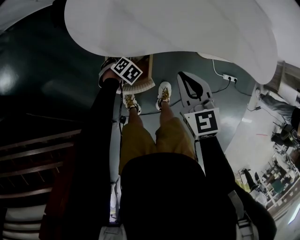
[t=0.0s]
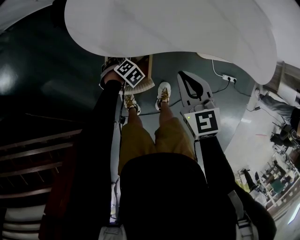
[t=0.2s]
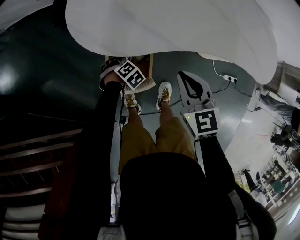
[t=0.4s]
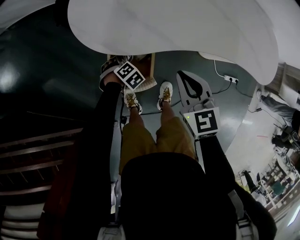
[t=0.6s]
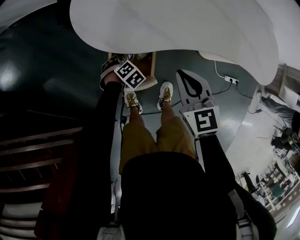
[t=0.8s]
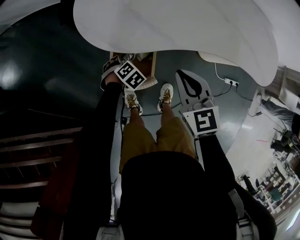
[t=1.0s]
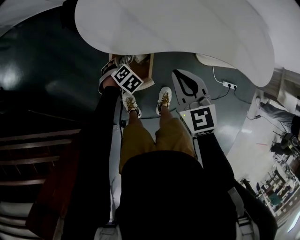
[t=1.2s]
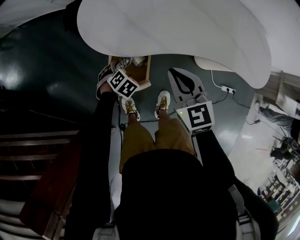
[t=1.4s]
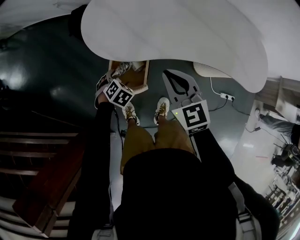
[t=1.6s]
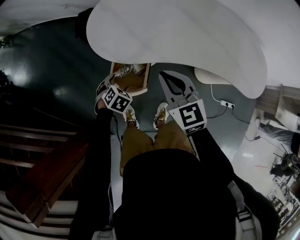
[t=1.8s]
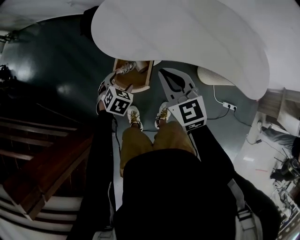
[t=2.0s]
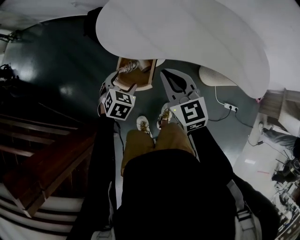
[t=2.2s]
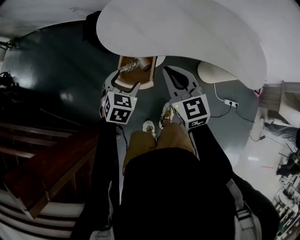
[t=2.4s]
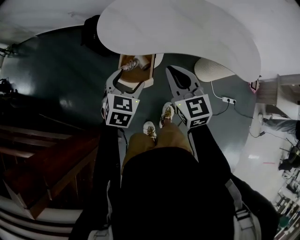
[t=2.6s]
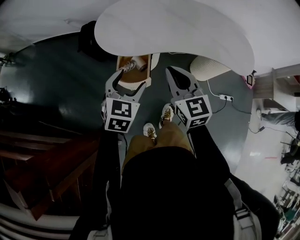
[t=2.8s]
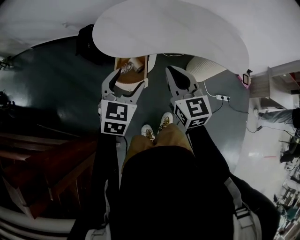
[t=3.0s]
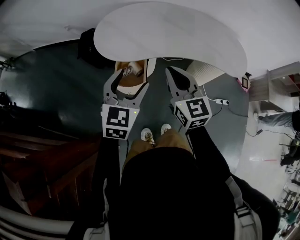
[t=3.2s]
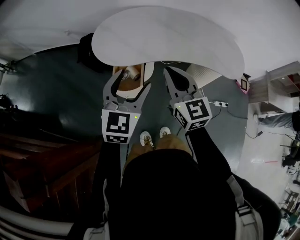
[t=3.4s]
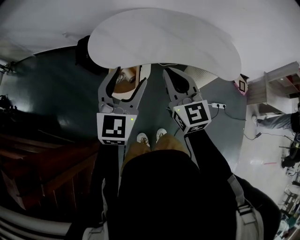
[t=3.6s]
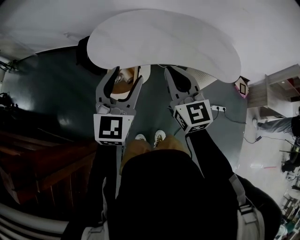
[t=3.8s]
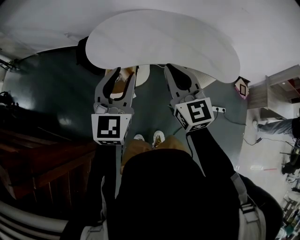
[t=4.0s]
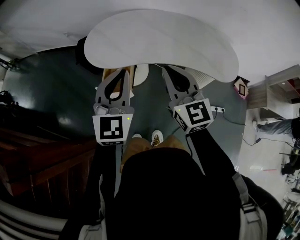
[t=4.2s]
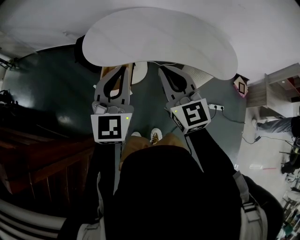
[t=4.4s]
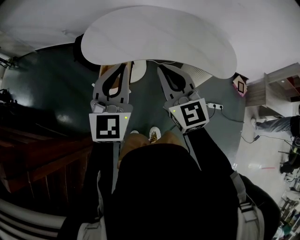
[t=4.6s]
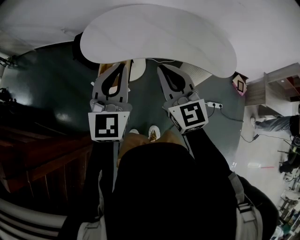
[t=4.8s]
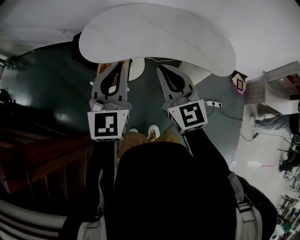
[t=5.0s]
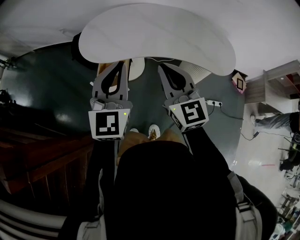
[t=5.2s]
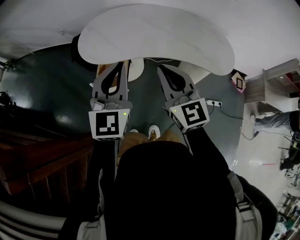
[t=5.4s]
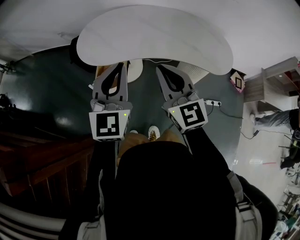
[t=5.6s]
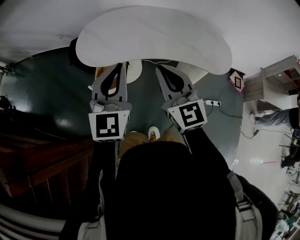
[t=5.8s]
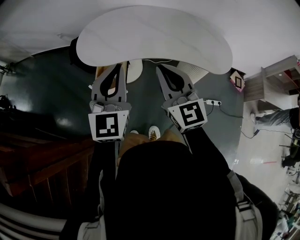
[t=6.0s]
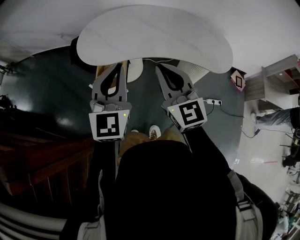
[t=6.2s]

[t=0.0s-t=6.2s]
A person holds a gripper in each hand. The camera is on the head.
t=0.0s to t=1.6s: The left gripper shifts some 10 cm upward; the right gripper goes approximately 5 cm upward.
t=1.6s to t=3.2s: The right gripper shifts approximately 15 cm upward and backward, while the left gripper is displaced upward by approximately 35 cm, and tilts its fingers about 50 degrees upward.
t=3.2s to t=4.6s: The right gripper travels to the right by approximately 10 cm. Meanwhile the left gripper shifts approximately 15 cm to the right and upward, turns by roughly 20 degrees, and closes its fingers.
t=4.6s to t=6.2s: The grippers make only small movements.

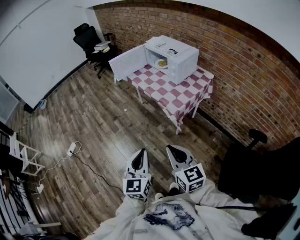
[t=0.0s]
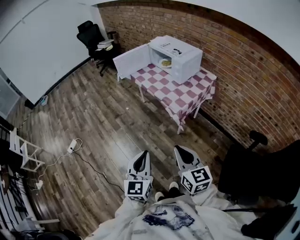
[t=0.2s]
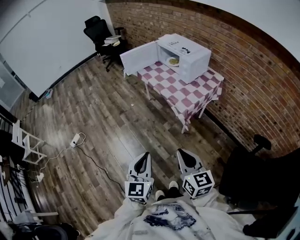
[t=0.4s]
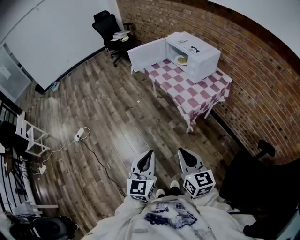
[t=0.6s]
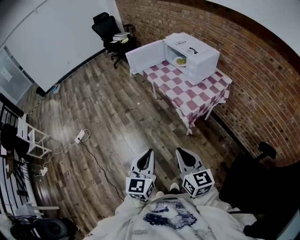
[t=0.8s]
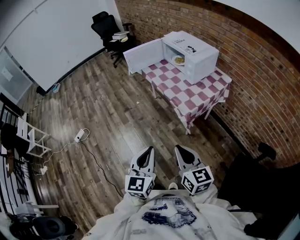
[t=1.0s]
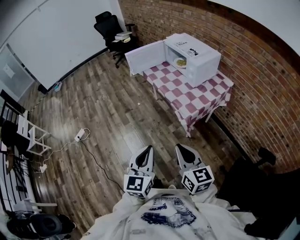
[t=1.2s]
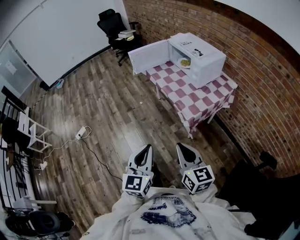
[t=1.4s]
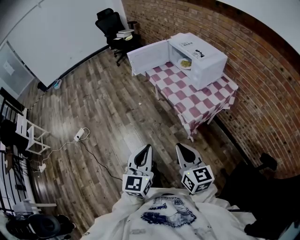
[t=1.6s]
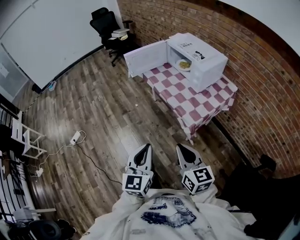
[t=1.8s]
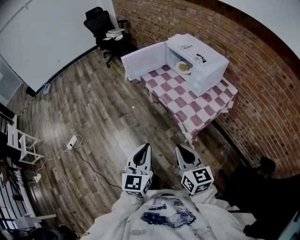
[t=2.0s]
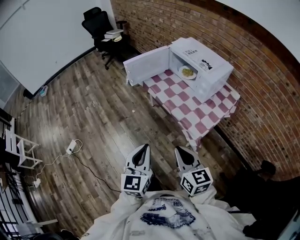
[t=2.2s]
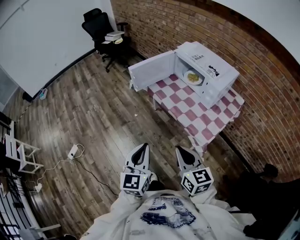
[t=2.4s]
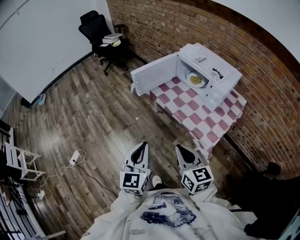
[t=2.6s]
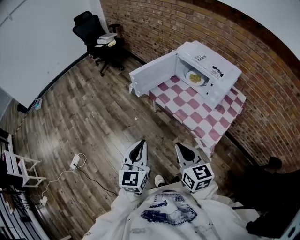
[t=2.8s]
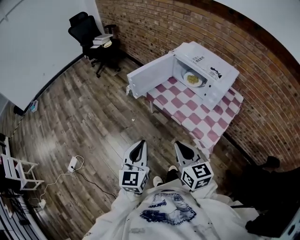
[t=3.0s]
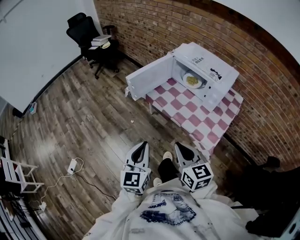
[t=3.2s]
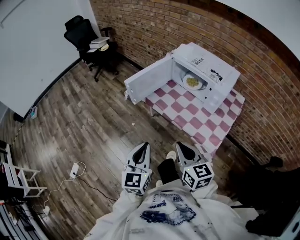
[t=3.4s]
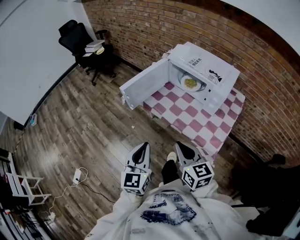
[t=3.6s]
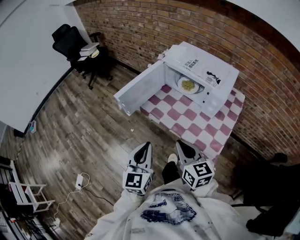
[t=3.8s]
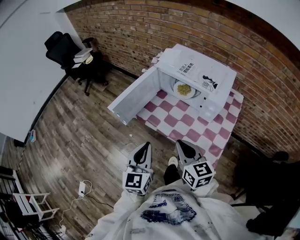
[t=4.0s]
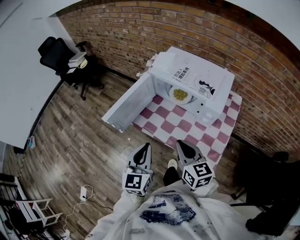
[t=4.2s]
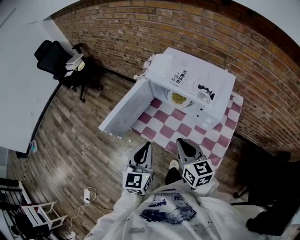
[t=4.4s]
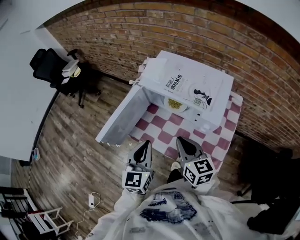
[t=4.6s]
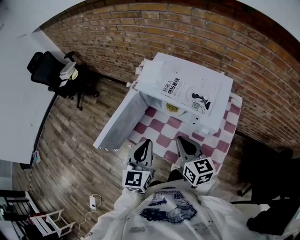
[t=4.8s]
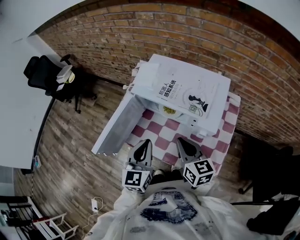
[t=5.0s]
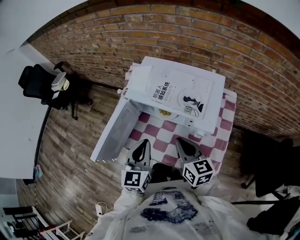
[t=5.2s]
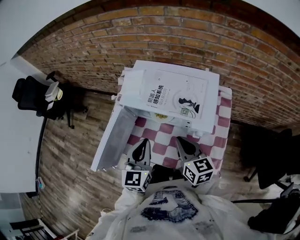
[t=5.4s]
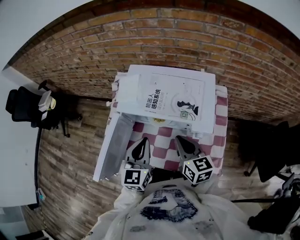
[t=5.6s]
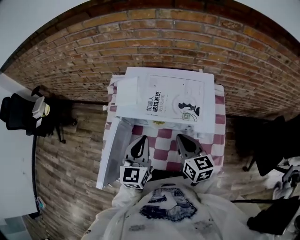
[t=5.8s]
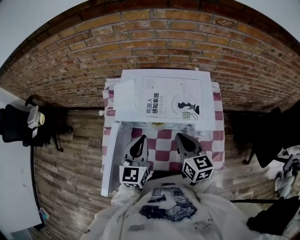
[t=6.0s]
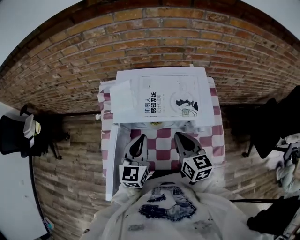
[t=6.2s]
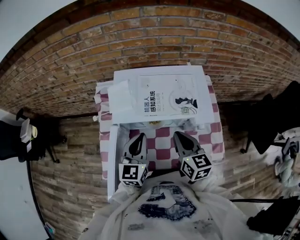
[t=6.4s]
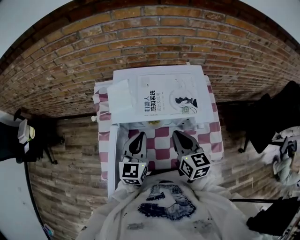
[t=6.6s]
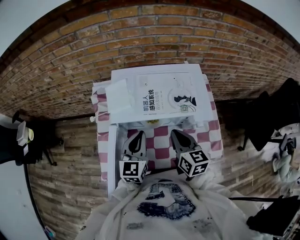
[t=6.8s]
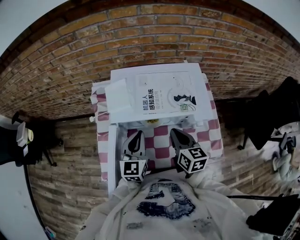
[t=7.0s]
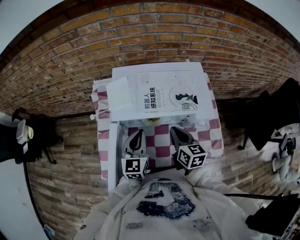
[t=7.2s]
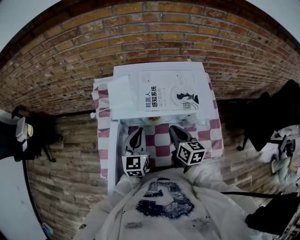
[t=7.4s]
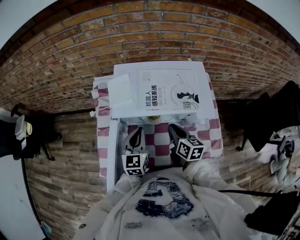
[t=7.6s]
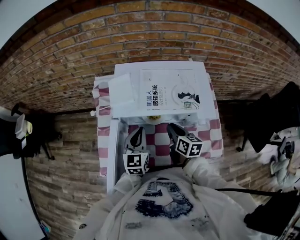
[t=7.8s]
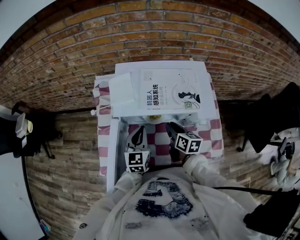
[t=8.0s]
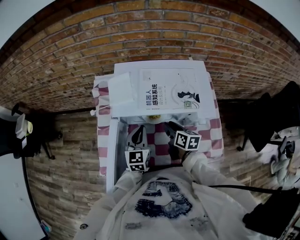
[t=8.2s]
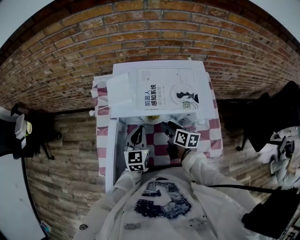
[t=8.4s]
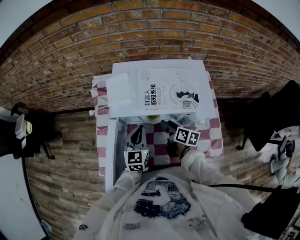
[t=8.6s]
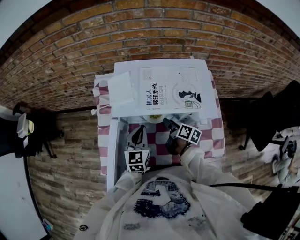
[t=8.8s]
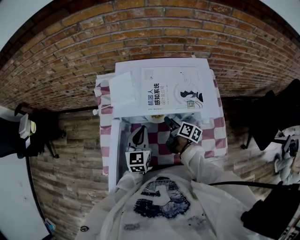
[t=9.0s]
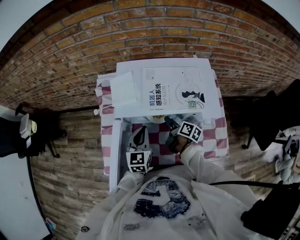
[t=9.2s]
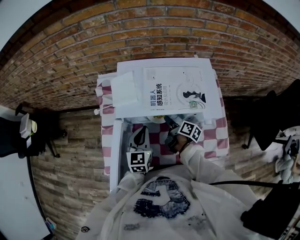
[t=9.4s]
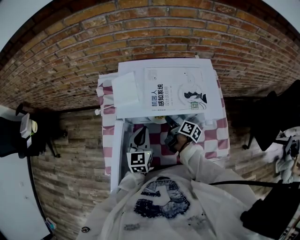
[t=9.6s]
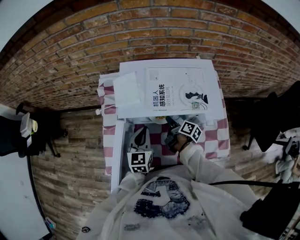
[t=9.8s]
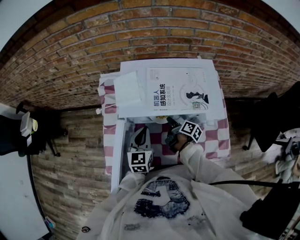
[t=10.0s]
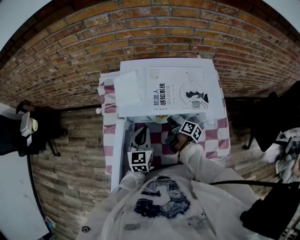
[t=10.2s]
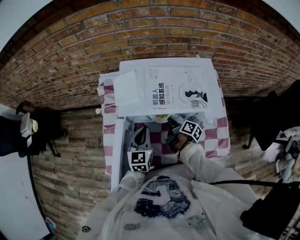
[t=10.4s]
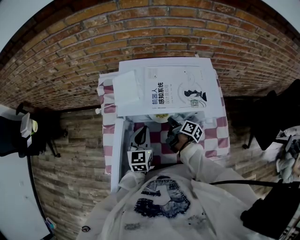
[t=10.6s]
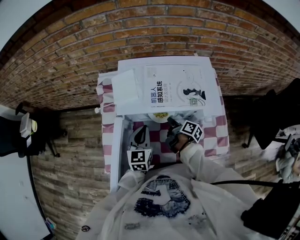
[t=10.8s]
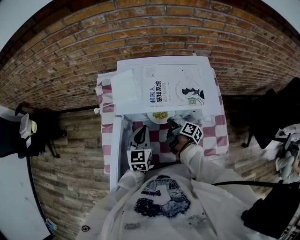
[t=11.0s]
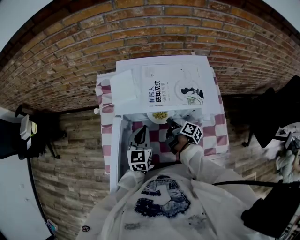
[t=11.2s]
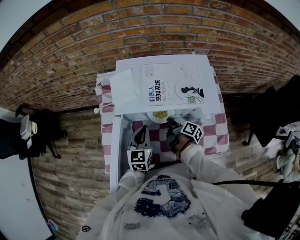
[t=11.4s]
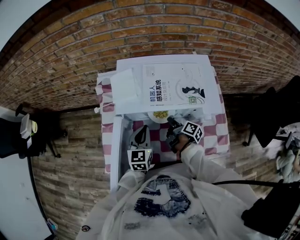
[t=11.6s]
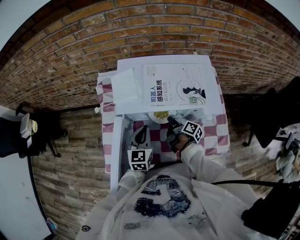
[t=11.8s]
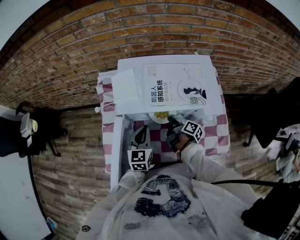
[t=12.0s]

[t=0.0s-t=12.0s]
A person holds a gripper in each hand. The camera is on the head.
t=0.0s to t=1.6s: Both grippers move forward, some 10 cm.
t=1.6s to t=3.0s: The two grippers go approximately 35 cm forward and to the left.
t=3.0s to t=4.4s: The right gripper travels forward by roughly 25 cm. Meanwhile the left gripper moves forward and to the right, roughly 30 cm.
t=4.4s to t=6.0s: The right gripper changes place by about 15 cm, and swivels roughly 30 degrees, while the left gripper ends up some 25 cm from where it was, and swivels about 30 degrees.
t=6.0s to t=7.6s: Both grippers travel together downward, about 10 cm.
t=7.6s to t=9.0s: The right gripper goes roughly 10 cm downward, rotates some 30 degrees, and opens its fingers.
t=9.0s to t=10.4s: The right gripper closes.
t=10.4s to t=12.0s: There are only small adjustments of the grippers.

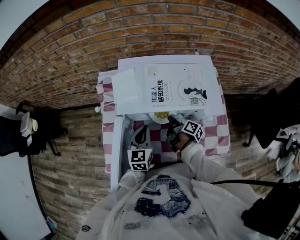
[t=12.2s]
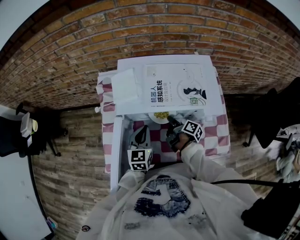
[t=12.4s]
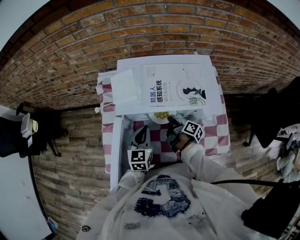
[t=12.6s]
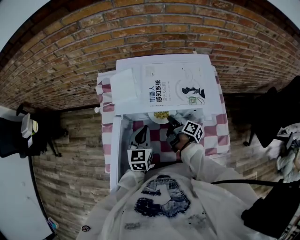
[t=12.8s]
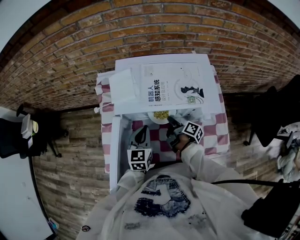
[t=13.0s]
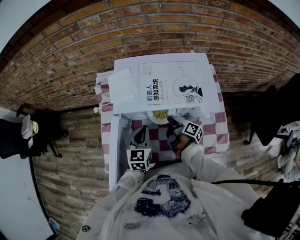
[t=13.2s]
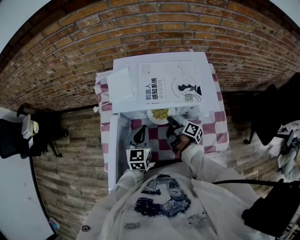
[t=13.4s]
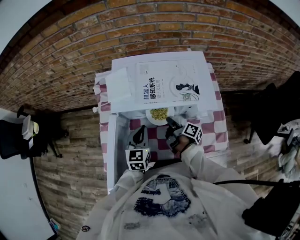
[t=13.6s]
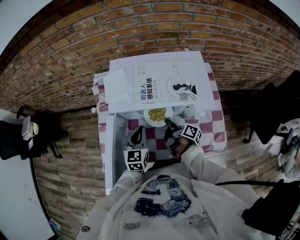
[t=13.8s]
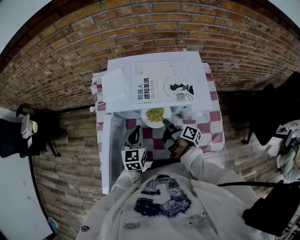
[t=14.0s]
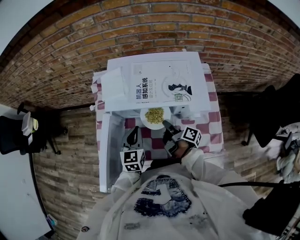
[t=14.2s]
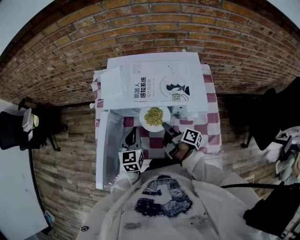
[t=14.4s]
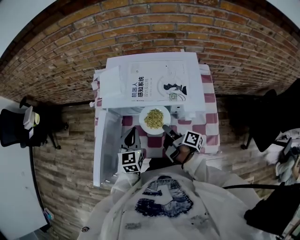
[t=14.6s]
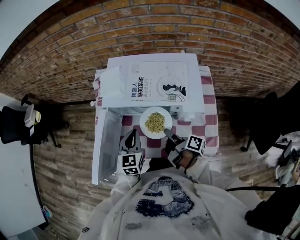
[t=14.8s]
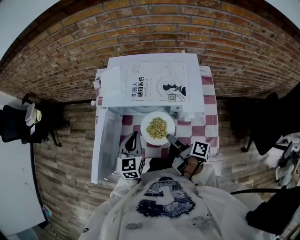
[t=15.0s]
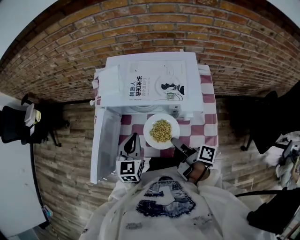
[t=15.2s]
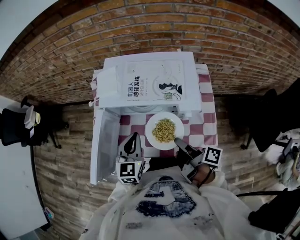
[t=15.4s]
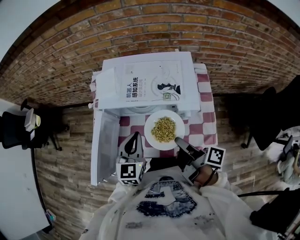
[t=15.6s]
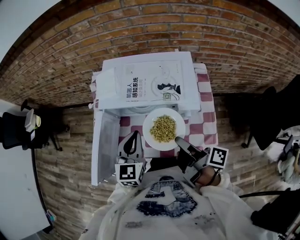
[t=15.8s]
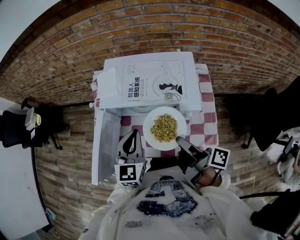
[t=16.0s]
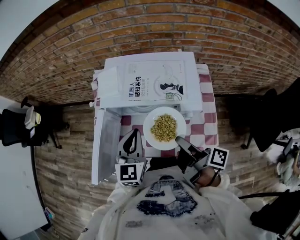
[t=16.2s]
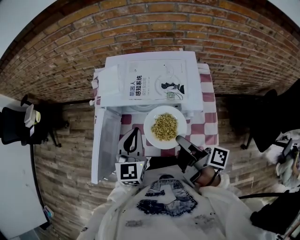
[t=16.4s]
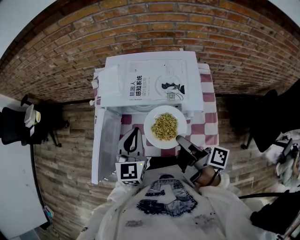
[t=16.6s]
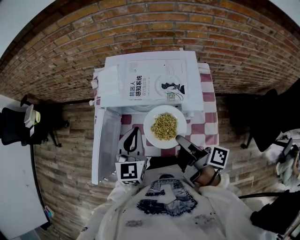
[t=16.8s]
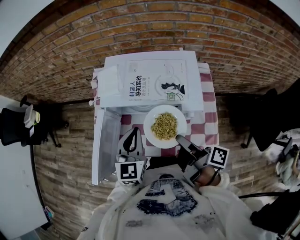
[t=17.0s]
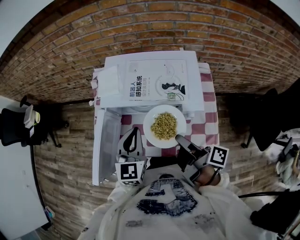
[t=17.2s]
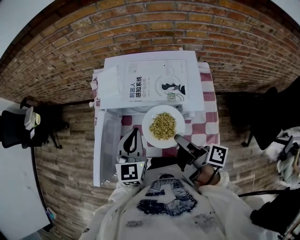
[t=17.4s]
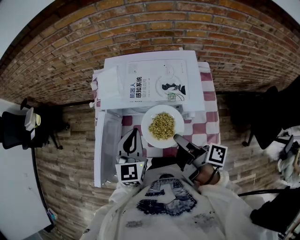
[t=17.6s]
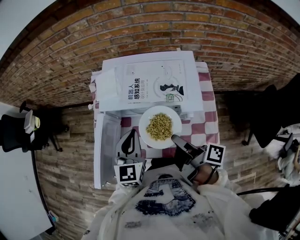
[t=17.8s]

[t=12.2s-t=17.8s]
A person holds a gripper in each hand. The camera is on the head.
t=12.2s to t=13.6s: There are only small adjustments of the grippers.
t=13.6s to t=15.0s: The left gripper goes roughly 5 cm backward; the right gripper goes some 15 cm upward and backward.
t=15.0s to t=16.4s: The grippers both shift upward by about 10 cm.
t=16.4s to t=17.8s: The grippers make only small movements.
